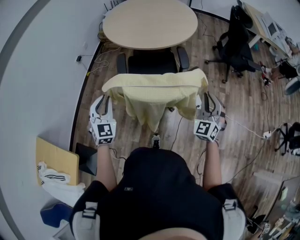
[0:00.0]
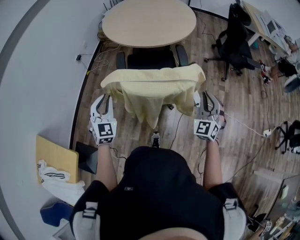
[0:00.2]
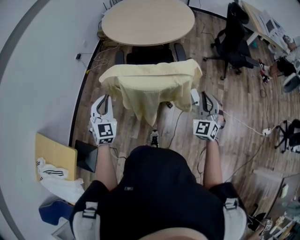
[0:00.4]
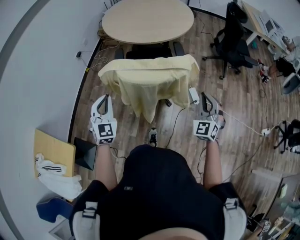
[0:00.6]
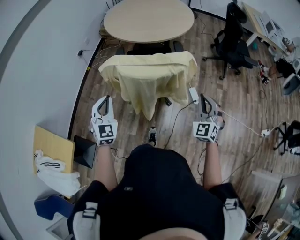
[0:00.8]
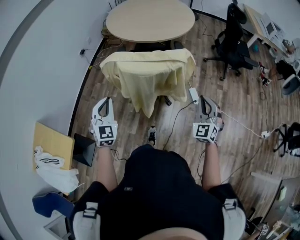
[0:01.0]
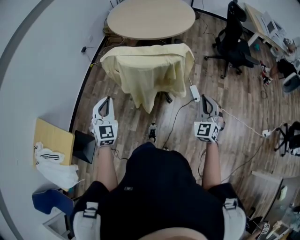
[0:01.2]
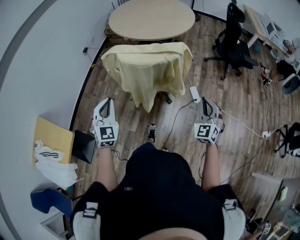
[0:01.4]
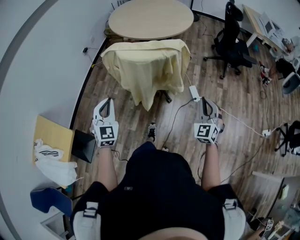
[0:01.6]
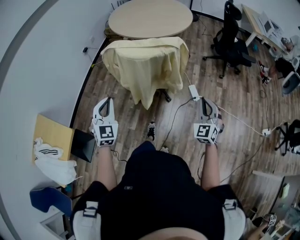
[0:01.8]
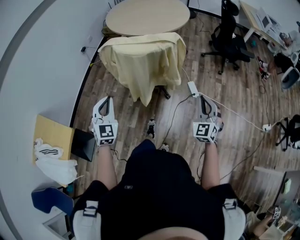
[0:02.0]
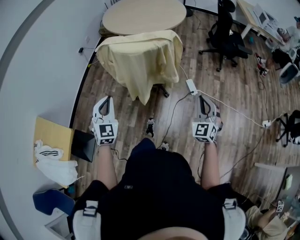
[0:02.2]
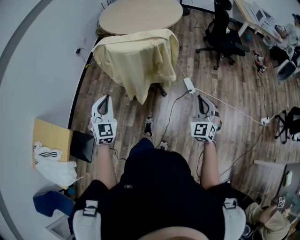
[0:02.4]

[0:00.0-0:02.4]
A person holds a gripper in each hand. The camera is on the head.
0:00.0 to 0:01.2: The two grippers go roughly 15 cm backward.
0:01.2 to 0:02.4: Both grippers move backward, approximately 10 cm.

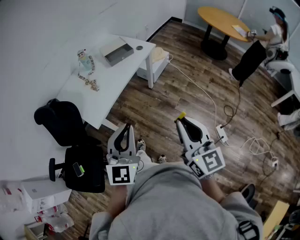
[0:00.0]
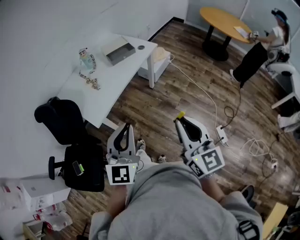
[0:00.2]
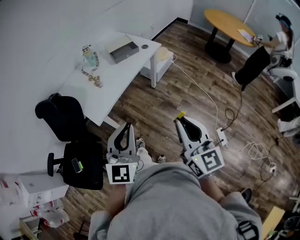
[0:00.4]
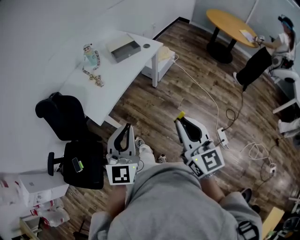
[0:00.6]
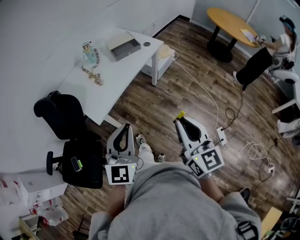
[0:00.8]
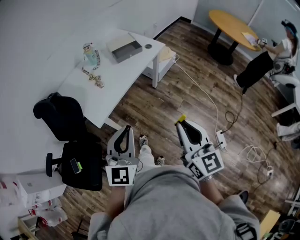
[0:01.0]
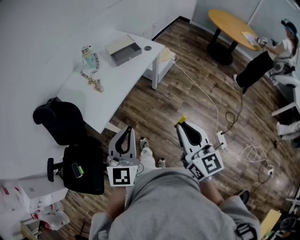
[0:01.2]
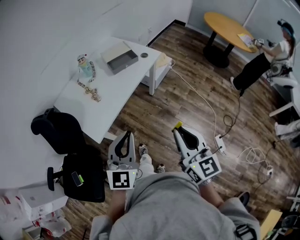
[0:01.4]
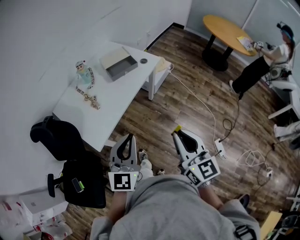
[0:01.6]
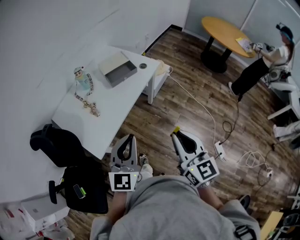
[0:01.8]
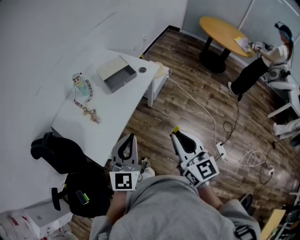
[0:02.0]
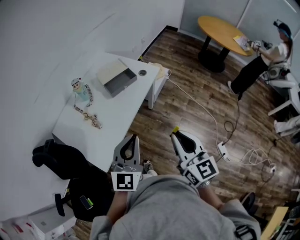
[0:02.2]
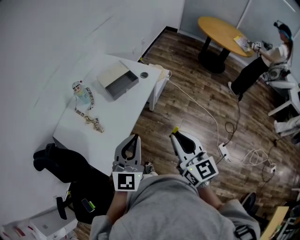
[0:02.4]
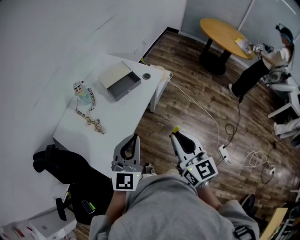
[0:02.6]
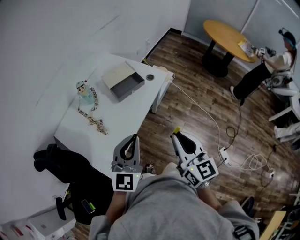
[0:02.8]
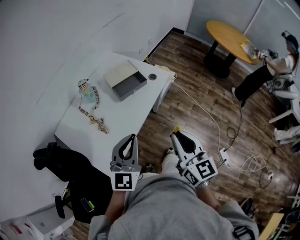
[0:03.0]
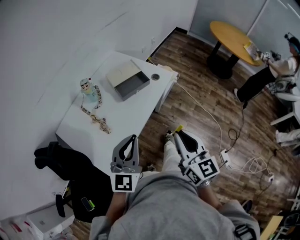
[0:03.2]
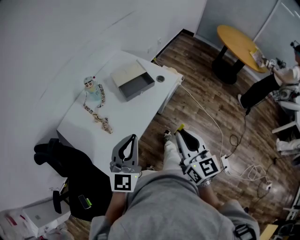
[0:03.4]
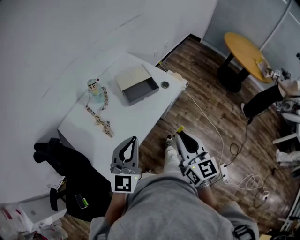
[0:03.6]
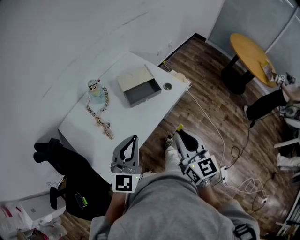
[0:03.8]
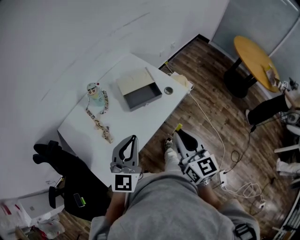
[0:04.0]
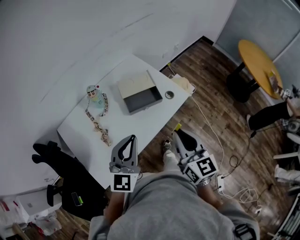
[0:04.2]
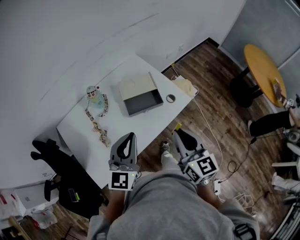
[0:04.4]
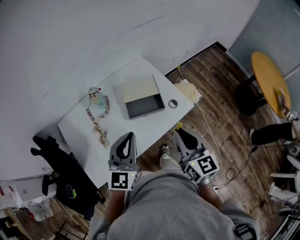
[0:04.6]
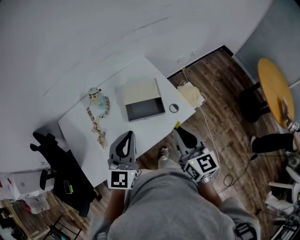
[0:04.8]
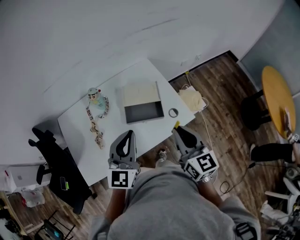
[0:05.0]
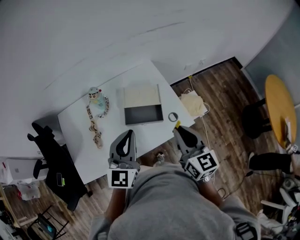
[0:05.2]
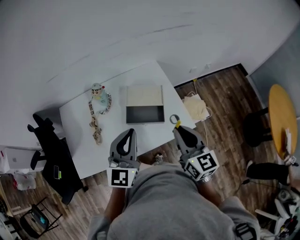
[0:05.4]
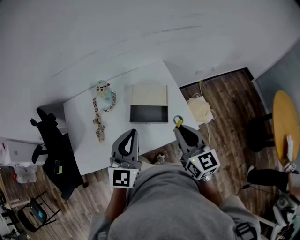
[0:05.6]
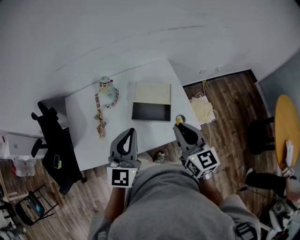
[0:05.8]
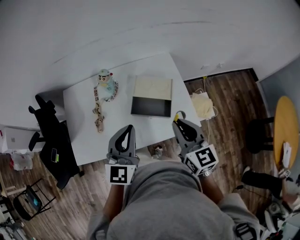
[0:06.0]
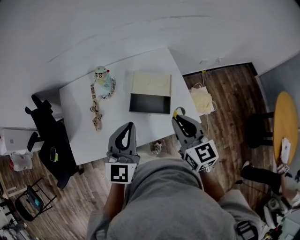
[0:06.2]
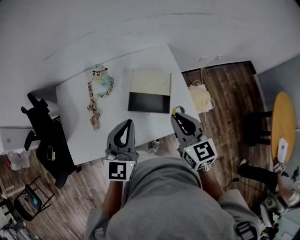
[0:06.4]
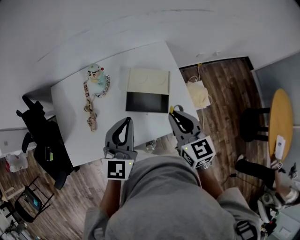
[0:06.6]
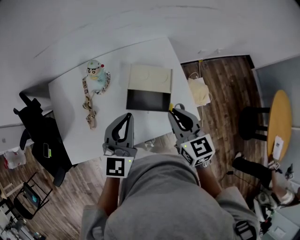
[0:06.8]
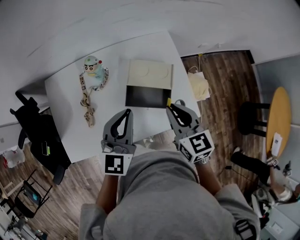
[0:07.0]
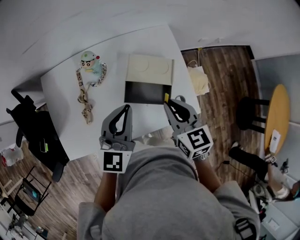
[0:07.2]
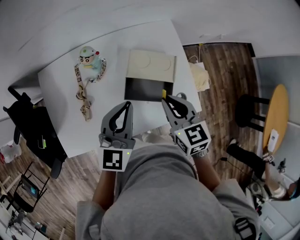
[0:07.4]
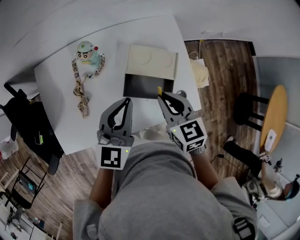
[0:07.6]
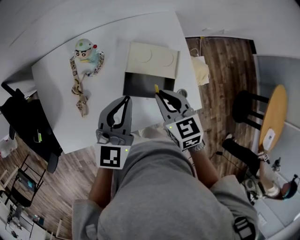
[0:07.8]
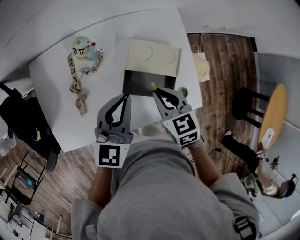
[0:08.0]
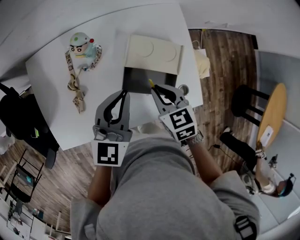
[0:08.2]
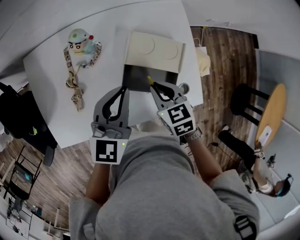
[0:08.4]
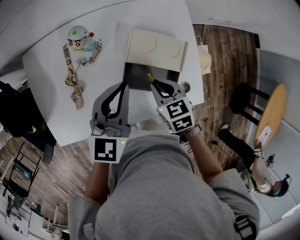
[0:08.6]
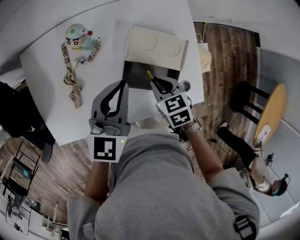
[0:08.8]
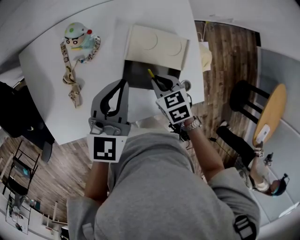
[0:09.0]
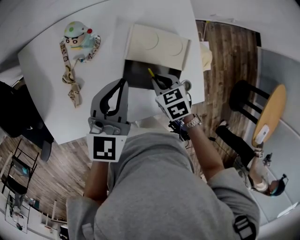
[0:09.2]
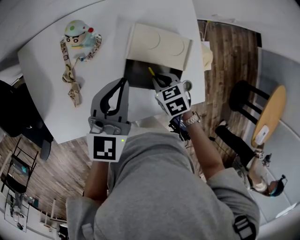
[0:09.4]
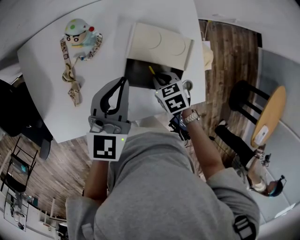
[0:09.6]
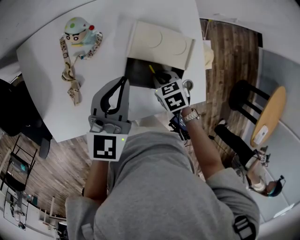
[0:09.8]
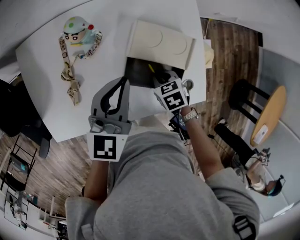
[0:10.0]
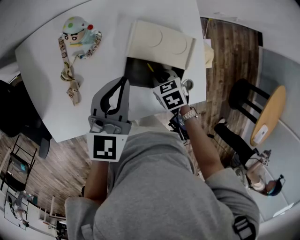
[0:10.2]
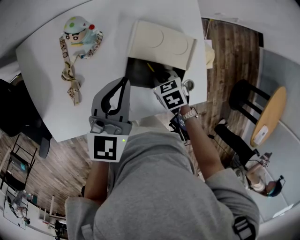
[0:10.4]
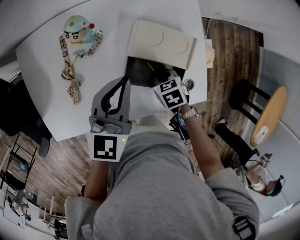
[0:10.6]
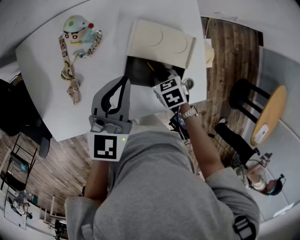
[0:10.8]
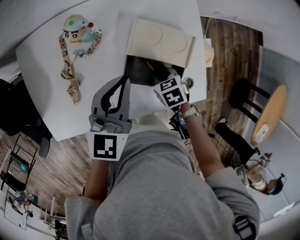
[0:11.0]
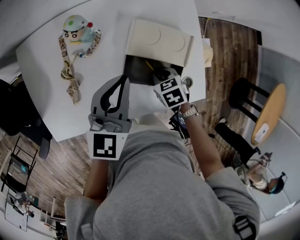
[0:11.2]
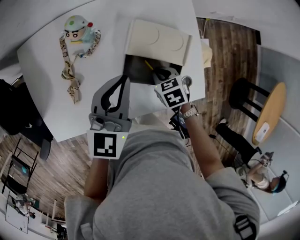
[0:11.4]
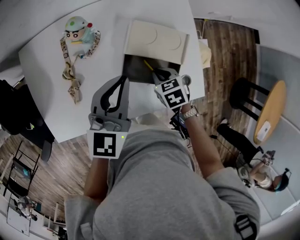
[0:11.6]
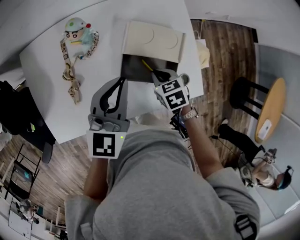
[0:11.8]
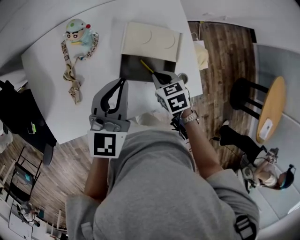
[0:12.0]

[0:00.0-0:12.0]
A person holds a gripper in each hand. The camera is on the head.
0:00.0 to 0:01.6: The two grippers go approximately 15 cm forward.
0:01.6 to 0:03.0: Both grippers move forward and to the left, approximately 20 cm.
0:03.0 to 0:04.4: Both grippers travel together forward, approximately 20 cm.
0:04.4 to 0:06.0: The right gripper ends up roughly 15 cm from where it was, and changes its angle by about 30 degrees. Meanwhile the left gripper moves some 10 cm, and swivels about 30 degrees.
0:06.0 to 0:07.6: The right gripper moves downward, forward and to the left, some 15 cm, and swivels some 20 degrees. The left gripper travels forward and downward by some 15 cm.
0:07.6 to 0:09.0: The right gripper heads downward, covering about 15 cm, and swivels about 30 degrees; the left gripper ends up some 5 cm from where it was.
0:09.0 to 0:10.4: The right gripper shifts approximately 5 cm downward.
0:10.4 to 0:12.0: The right gripper travels upward by some 5 cm, while the left gripper moves about 5 cm.

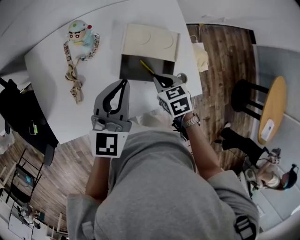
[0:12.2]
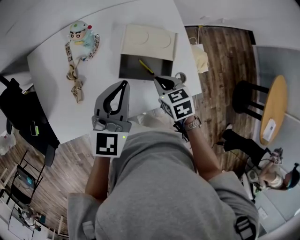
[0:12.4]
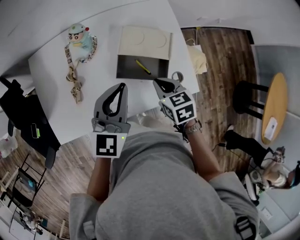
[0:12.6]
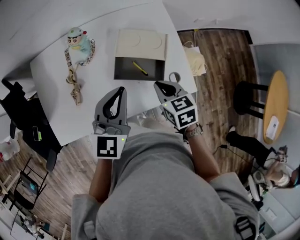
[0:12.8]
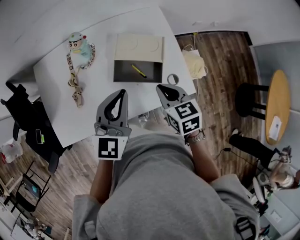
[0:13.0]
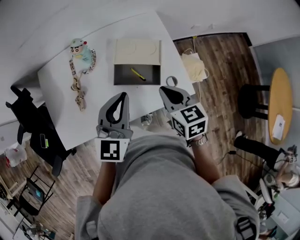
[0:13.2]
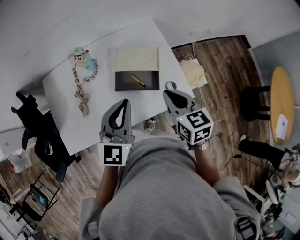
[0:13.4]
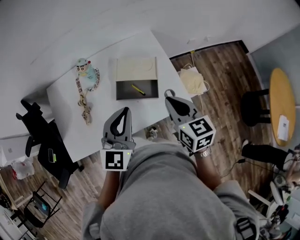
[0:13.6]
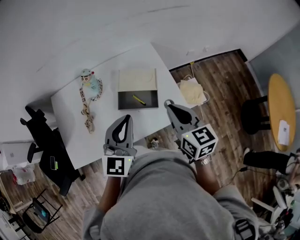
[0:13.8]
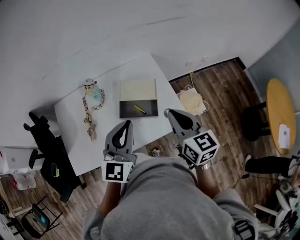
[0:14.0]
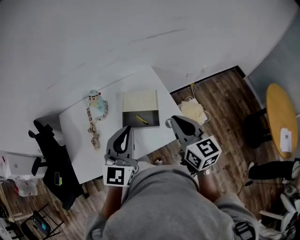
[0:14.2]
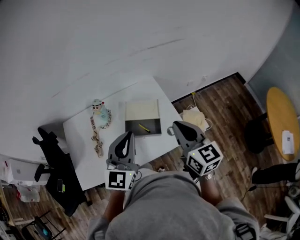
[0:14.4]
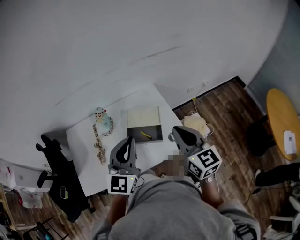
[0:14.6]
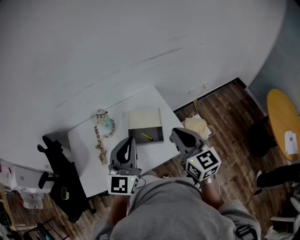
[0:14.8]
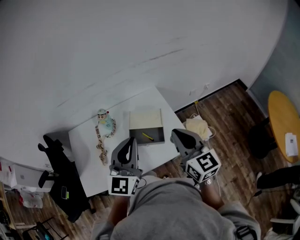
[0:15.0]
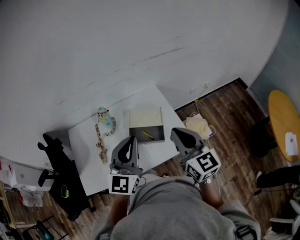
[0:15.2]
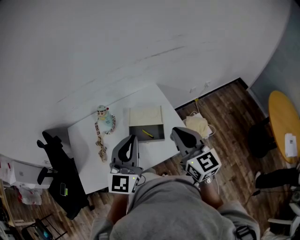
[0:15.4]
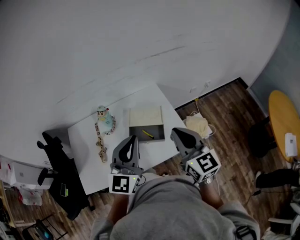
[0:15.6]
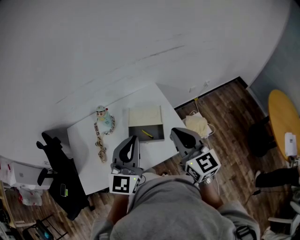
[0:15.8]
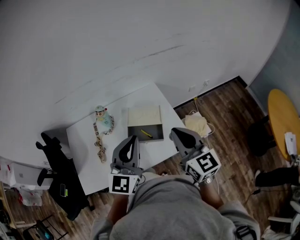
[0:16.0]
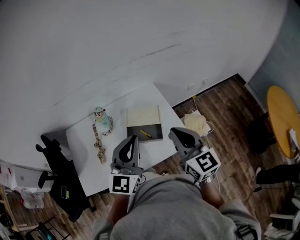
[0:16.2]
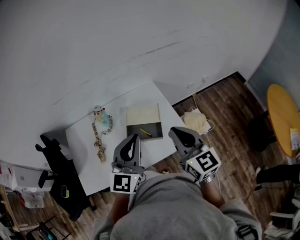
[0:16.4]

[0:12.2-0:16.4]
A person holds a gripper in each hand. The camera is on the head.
0:12.2 to 0:13.6: The left gripper heads backward, upward and to the right, covering about 15 cm; the right gripper goes some 20 cm upward and backward, and tips its fingers upward by approximately 30 degrees.
0:13.6 to 0:15.0: The two grippers go about 15 cm upward. The right gripper turns by approximately 20 degrees.
0:15.0 to 0:16.4: The grippers make only small movements.

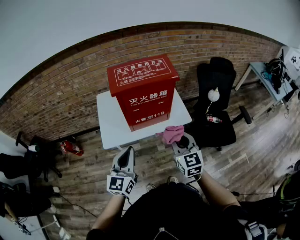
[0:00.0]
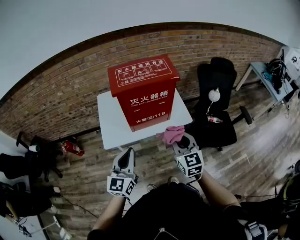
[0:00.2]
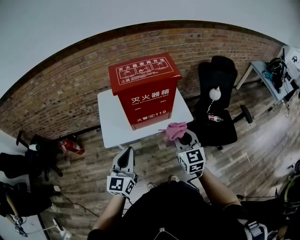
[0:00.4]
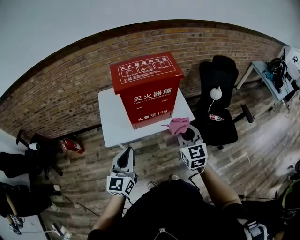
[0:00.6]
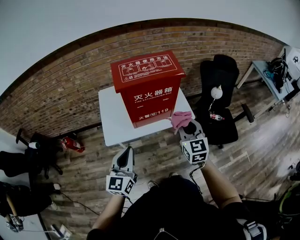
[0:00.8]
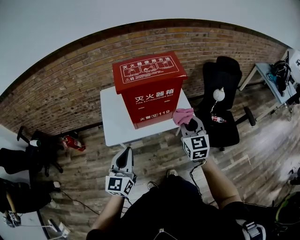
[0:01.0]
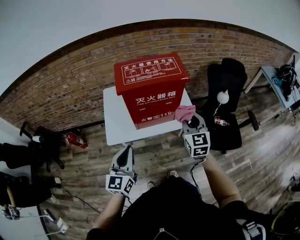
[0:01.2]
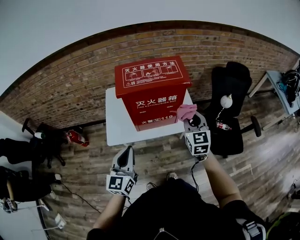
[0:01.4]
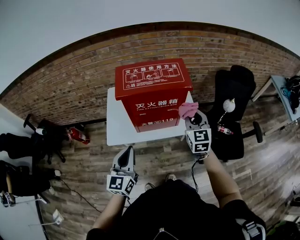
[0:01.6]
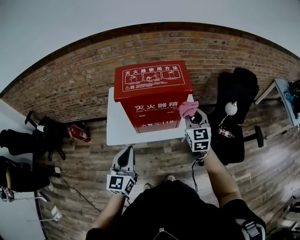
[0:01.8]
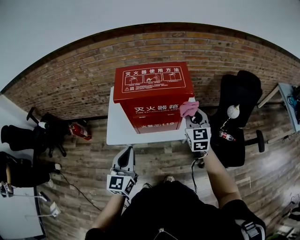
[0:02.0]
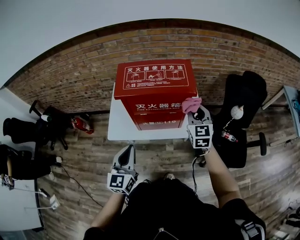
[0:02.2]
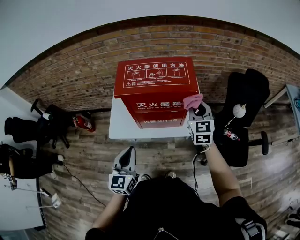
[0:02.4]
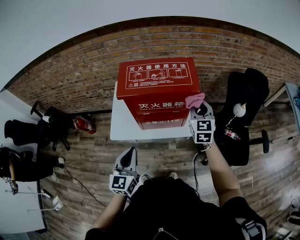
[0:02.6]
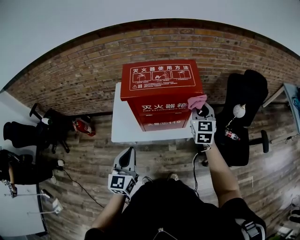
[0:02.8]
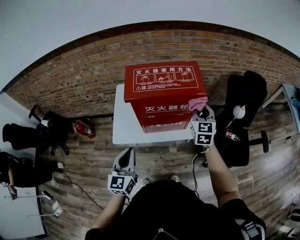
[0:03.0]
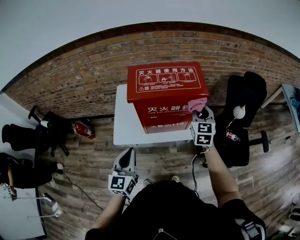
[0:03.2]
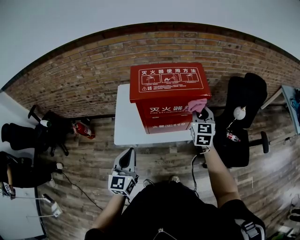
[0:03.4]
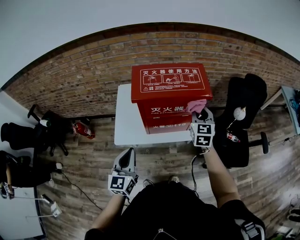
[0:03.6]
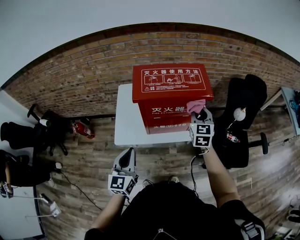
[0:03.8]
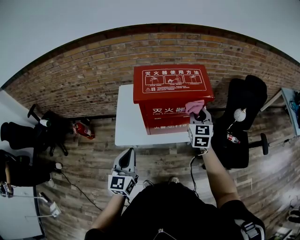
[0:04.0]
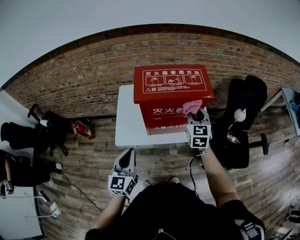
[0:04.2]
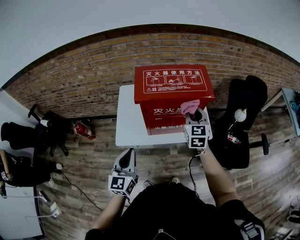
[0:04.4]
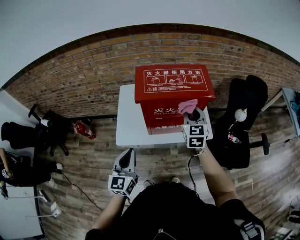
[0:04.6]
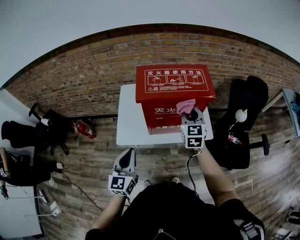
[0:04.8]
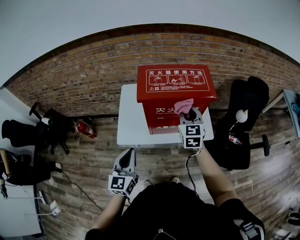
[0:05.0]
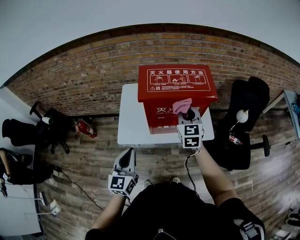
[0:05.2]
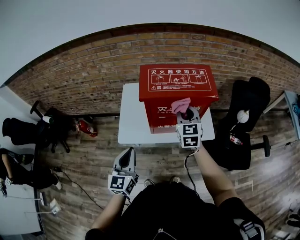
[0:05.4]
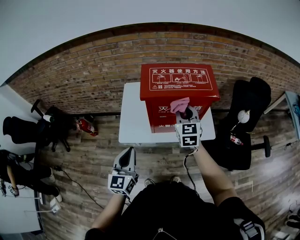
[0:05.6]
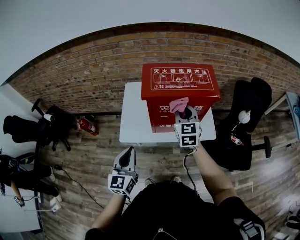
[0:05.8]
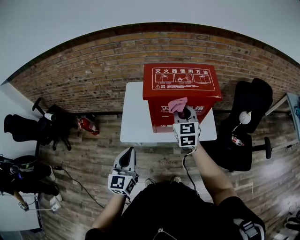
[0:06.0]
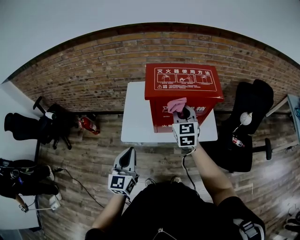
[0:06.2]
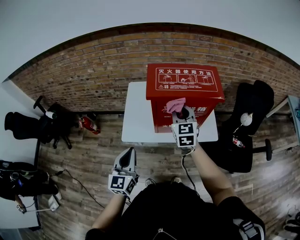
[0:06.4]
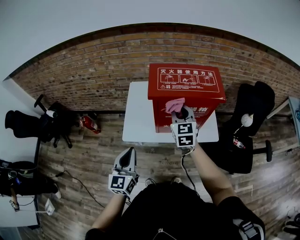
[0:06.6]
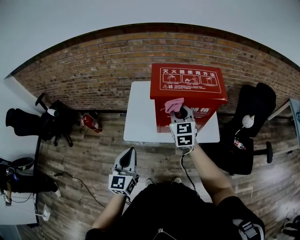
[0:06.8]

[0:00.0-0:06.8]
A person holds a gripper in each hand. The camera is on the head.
0:00.0 to 0:01.4: The right gripper goes about 15 cm forward.
0:01.4 to 0:02.8: The right gripper goes roughly 10 cm forward.
0:02.8 to 0:04.0: Both grippers travel together to the left, approximately 5 cm.
0:04.0 to 0:05.4: The right gripper travels to the left by about 10 cm.
0:05.4 to 0:06.8: The right gripper shifts some 10 cm to the left.
